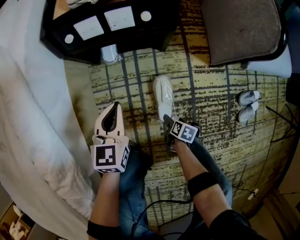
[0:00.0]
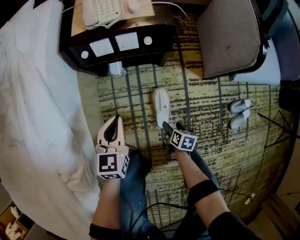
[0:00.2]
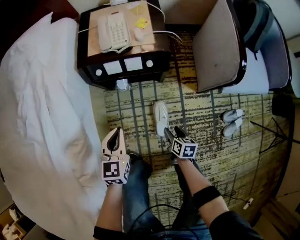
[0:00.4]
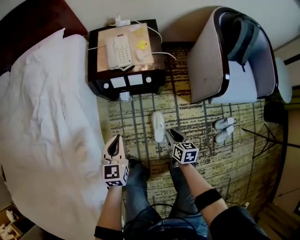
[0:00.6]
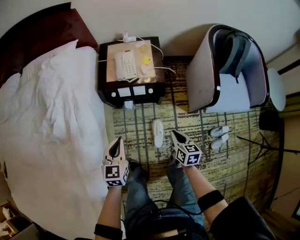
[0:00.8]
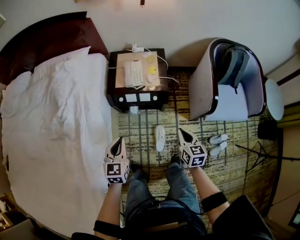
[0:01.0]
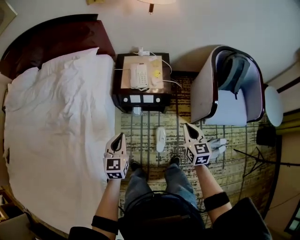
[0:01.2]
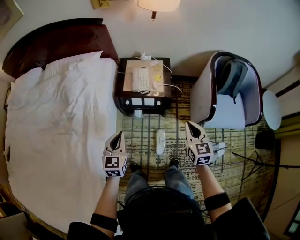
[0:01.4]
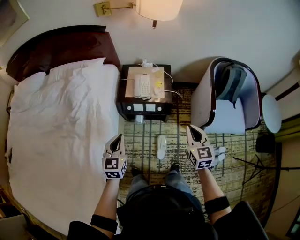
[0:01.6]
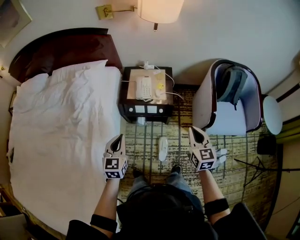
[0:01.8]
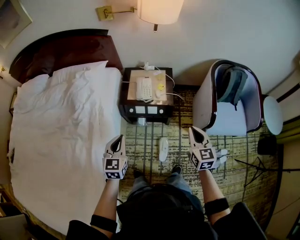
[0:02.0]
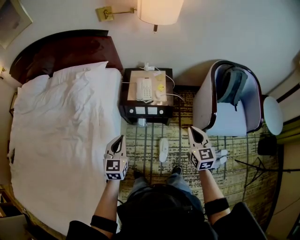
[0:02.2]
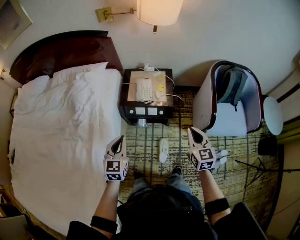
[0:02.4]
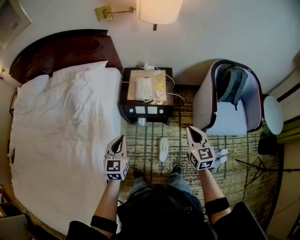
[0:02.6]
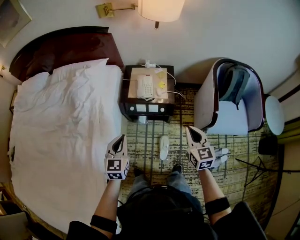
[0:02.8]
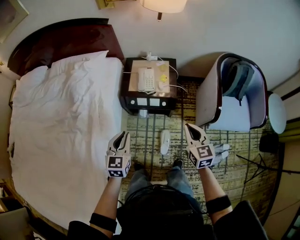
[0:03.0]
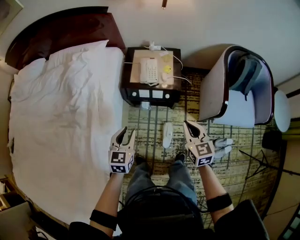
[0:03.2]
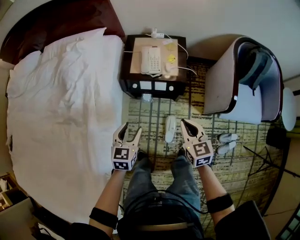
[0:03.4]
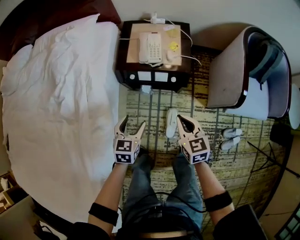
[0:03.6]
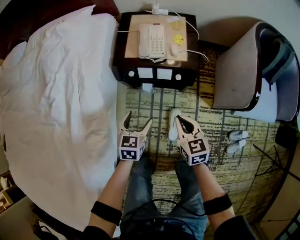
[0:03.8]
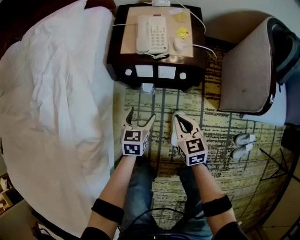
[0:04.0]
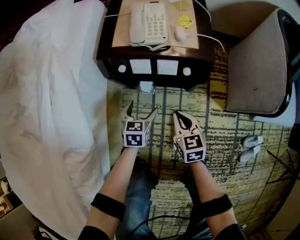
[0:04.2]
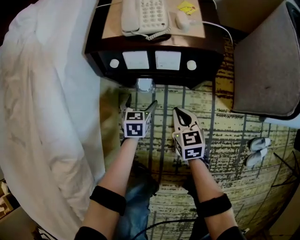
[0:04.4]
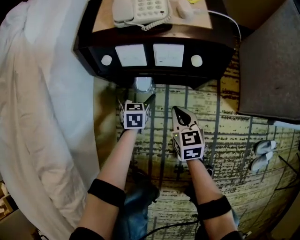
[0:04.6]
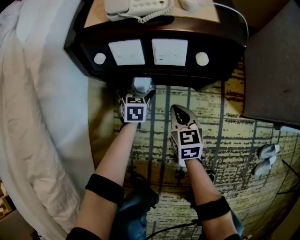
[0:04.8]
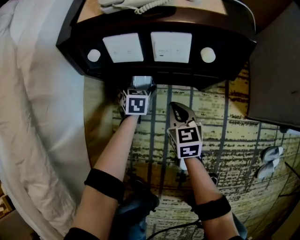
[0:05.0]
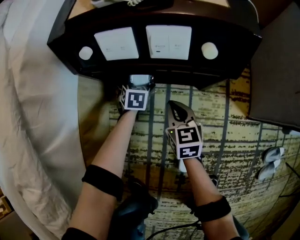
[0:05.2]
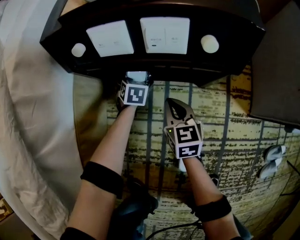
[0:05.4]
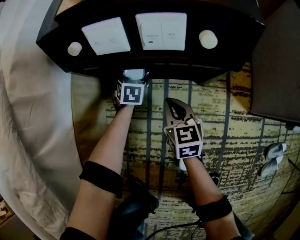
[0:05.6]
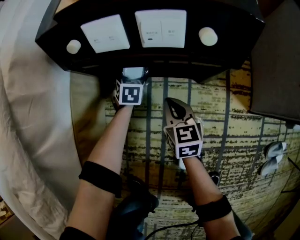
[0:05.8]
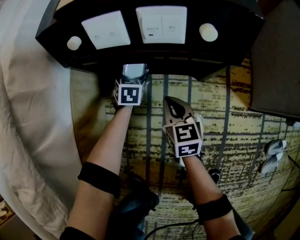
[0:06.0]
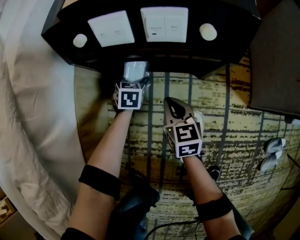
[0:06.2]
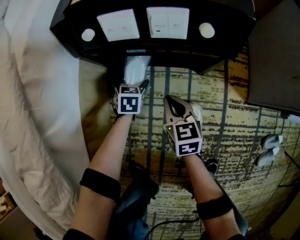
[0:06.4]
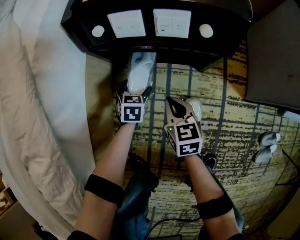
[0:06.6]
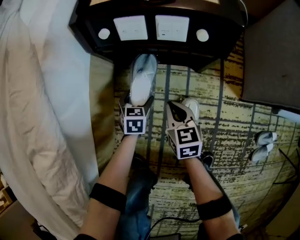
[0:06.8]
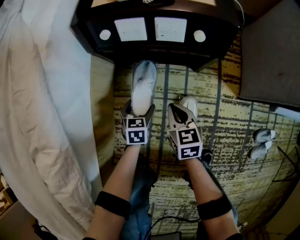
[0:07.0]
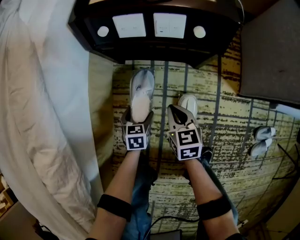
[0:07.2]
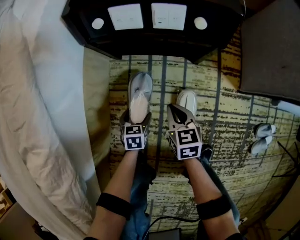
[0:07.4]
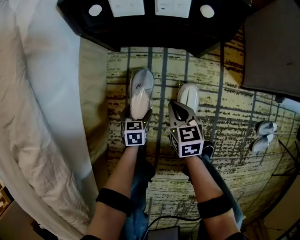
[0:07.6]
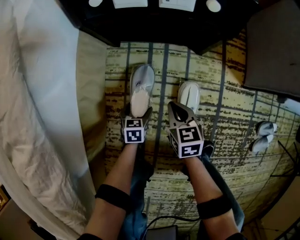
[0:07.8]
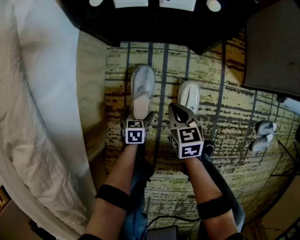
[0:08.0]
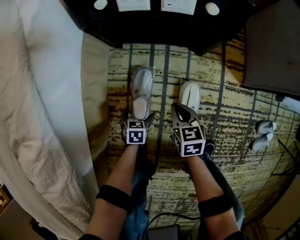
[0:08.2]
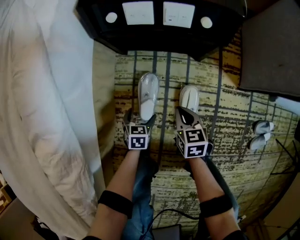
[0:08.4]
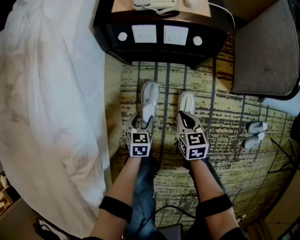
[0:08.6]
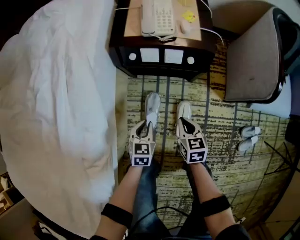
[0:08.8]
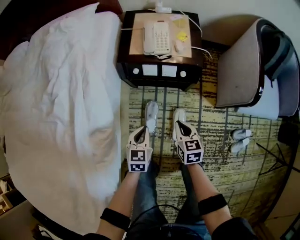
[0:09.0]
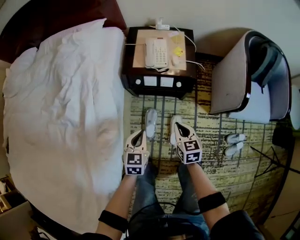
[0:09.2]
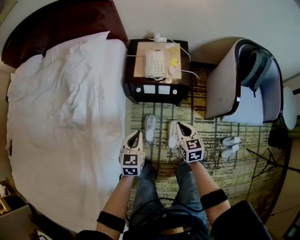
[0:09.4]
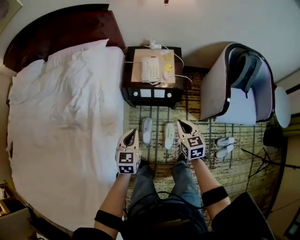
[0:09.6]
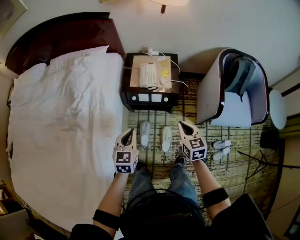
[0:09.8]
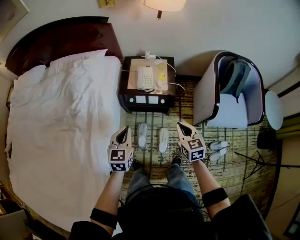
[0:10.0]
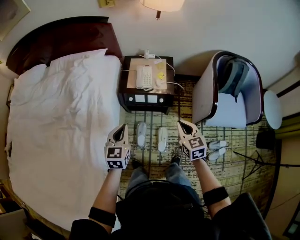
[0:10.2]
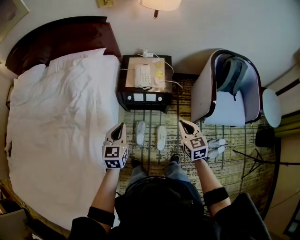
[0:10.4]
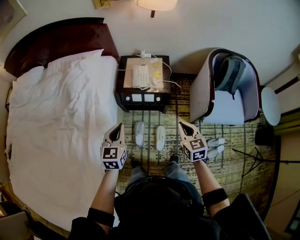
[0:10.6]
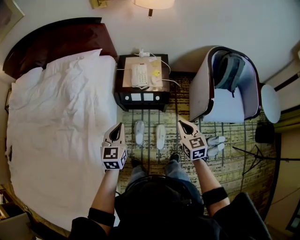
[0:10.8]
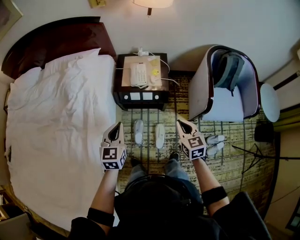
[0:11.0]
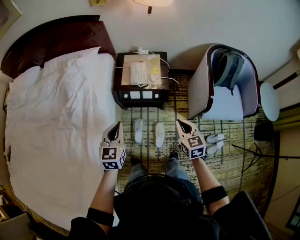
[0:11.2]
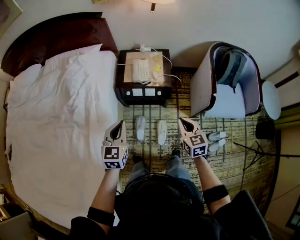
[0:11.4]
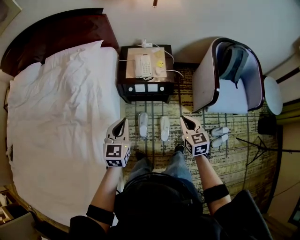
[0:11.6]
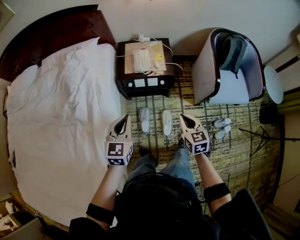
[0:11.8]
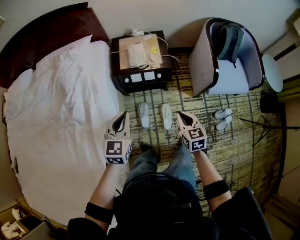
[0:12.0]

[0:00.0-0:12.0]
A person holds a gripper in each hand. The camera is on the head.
0:00.0 to 0:01.6: The right gripper moves upward, some 80 cm, tips its fingers upward by approximately 40 degrees, and closes up, while the left gripper heads upward, covering some 50 cm.
0:01.6 to 0:03.0: The grippers move only a little.
0:03.0 to 0:04.4: Both grippers move downward, some 60 cm. The left gripper swivels about 20 degrees, and opens up.
0:04.4 to 0:06.0: The right gripper is displaced downward by about 15 cm, while the left gripper heads downward and forward, covering about 20 cm.
0:06.0 to 0:07.6: The right gripper moves backward, approximately 15 cm, while the left gripper goes roughly 30 cm backward.
0:07.6 to 0:09.0: The two grippers go about 40 cm upward. The left gripper rotates roughly 20 degrees, and closes up.
0:09.0 to 0:10.4: Both grippers travel together upward, about 35 cm.
0:10.4 to 0:12.0: The right gripper heads downward, backward and to the left, covering about 10 cm.

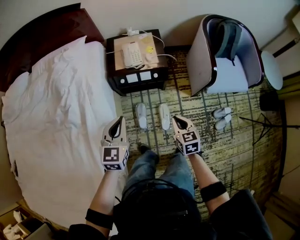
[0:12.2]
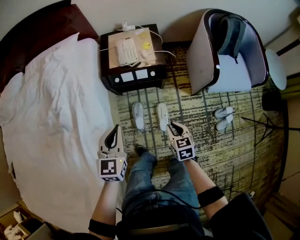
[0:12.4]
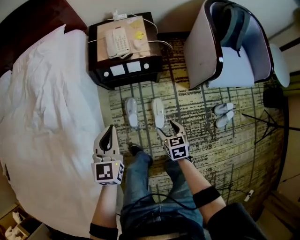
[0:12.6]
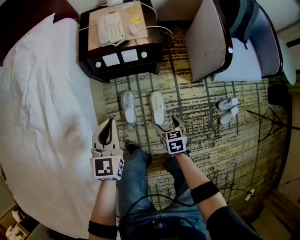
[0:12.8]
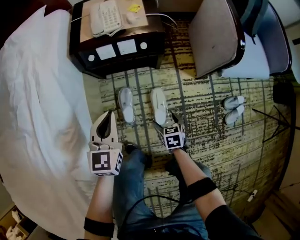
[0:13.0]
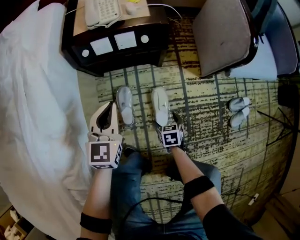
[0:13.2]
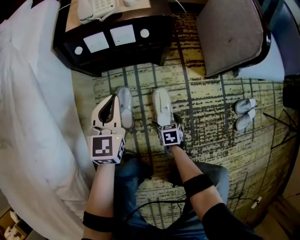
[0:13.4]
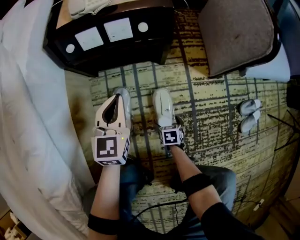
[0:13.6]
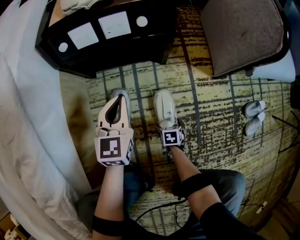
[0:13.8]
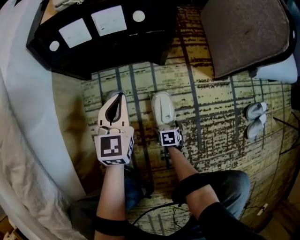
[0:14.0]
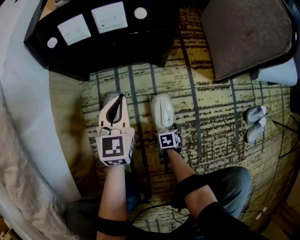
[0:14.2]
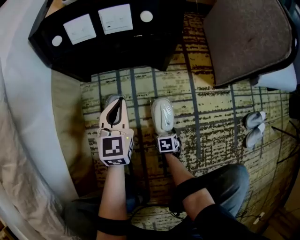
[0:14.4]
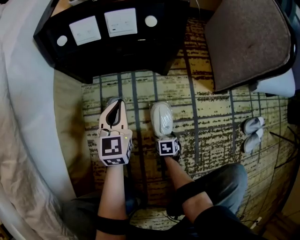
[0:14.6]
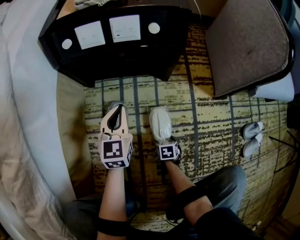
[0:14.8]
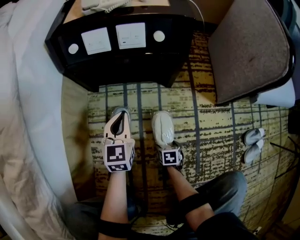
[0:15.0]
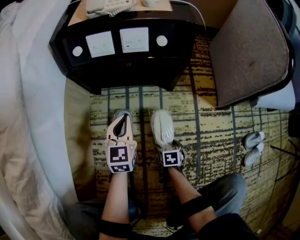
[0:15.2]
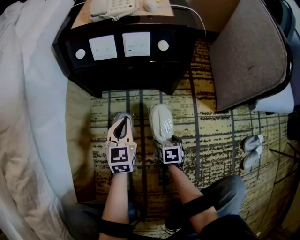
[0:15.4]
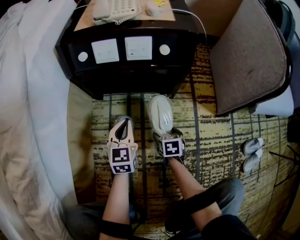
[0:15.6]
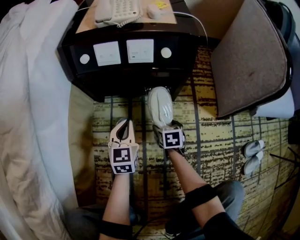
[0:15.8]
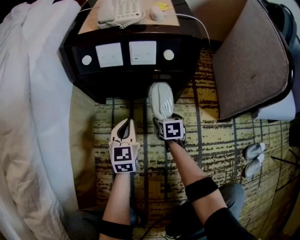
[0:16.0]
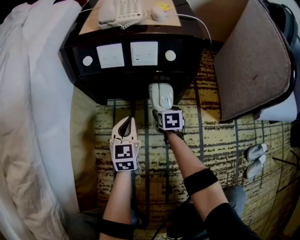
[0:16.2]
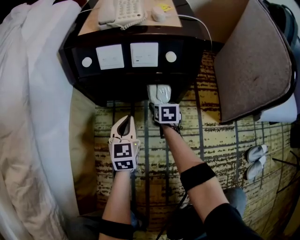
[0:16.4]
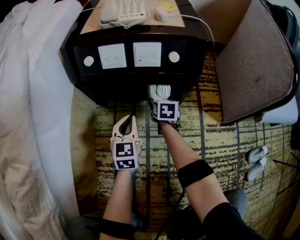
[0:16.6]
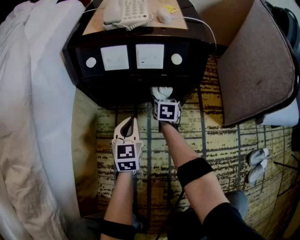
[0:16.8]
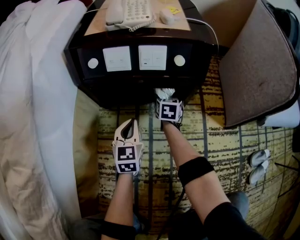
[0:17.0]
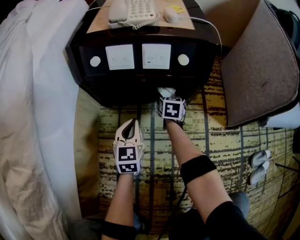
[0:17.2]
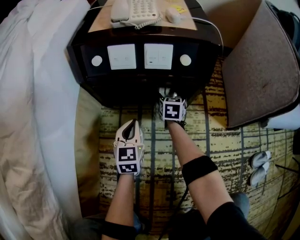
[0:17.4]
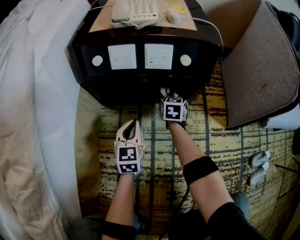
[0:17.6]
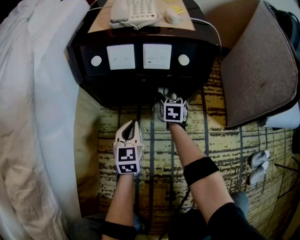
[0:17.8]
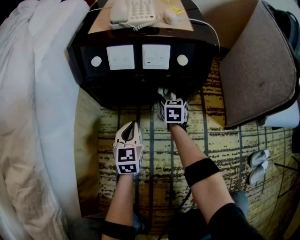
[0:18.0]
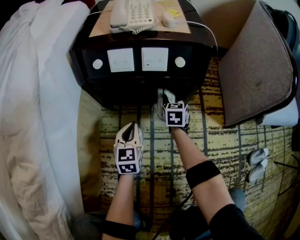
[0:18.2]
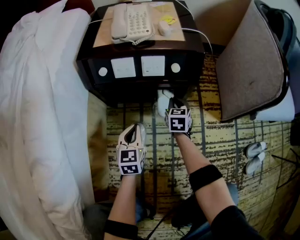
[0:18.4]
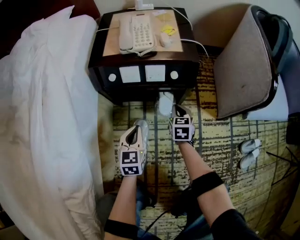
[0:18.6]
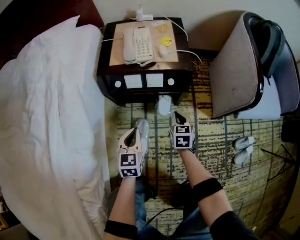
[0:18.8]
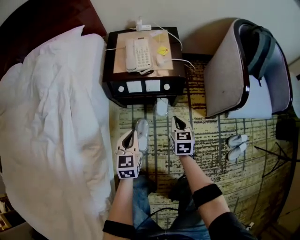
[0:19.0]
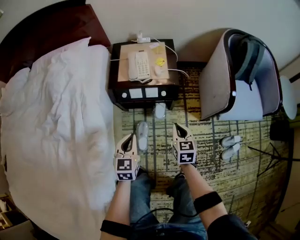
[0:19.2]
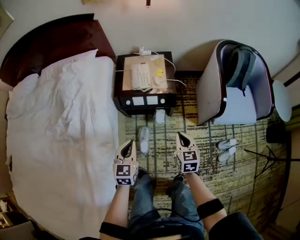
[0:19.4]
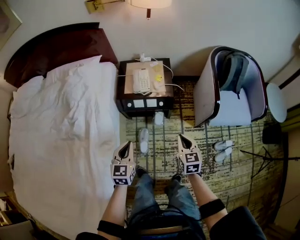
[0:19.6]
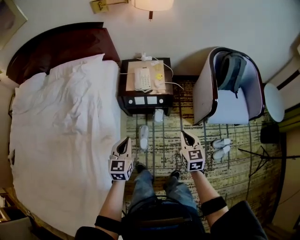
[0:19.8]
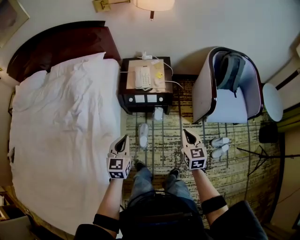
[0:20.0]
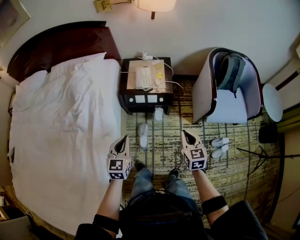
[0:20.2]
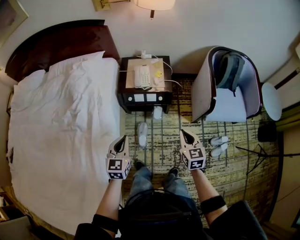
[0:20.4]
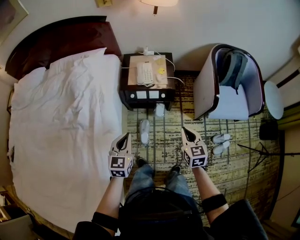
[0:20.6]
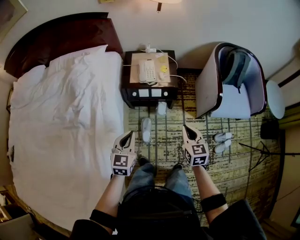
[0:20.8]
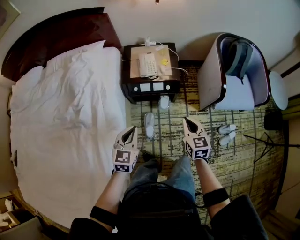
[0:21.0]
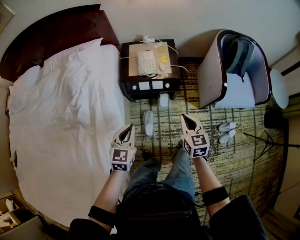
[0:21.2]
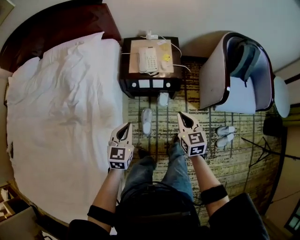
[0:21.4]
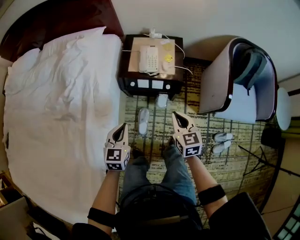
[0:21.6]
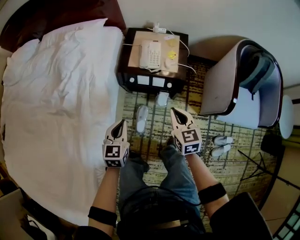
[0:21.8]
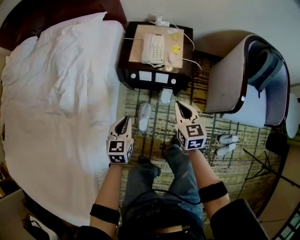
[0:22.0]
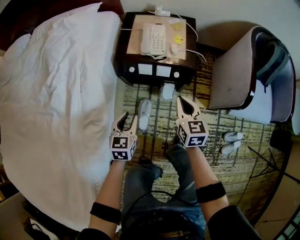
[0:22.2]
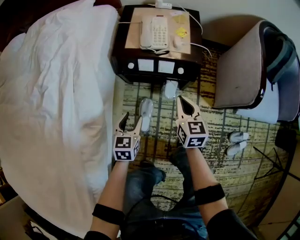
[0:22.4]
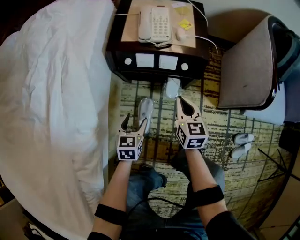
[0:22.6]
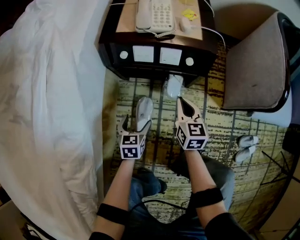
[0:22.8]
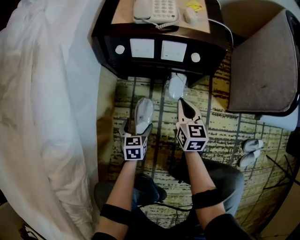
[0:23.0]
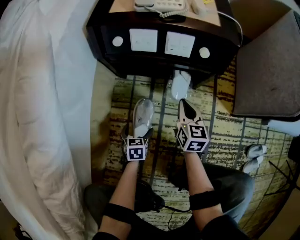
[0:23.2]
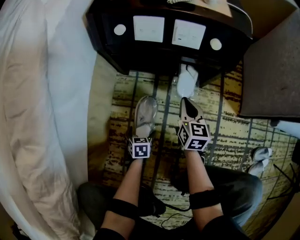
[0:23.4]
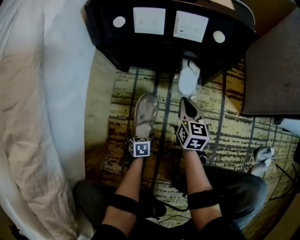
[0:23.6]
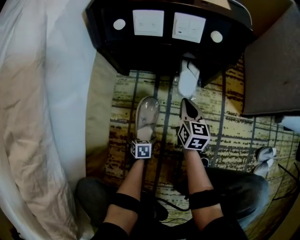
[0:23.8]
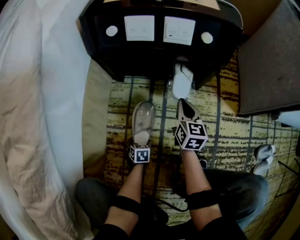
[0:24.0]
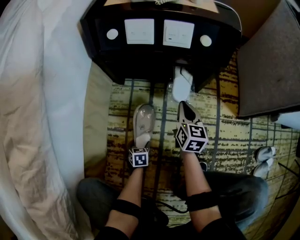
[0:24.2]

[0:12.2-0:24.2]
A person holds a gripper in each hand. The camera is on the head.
0:12.2 to 0:13.8: Both grippers travel together downward, about 70 cm. The right gripper points its fingers about 30 degrees further downward, and opens up.
0:13.8 to 0:15.2: The left gripper heads downward, covering roughly 10 cm; the right gripper travels downward and back again, roughly 10 cm each way.
0:15.2 to 0:16.6: The right gripper moves forward, approximately 30 cm, while the left gripper heads forward, covering about 5 cm.
0:16.6 to 0:18.2: The right gripper is displaced upward by approximately 5 cm, and closes.
0:18.2 to 0:19.8: The right gripper travels upward and backward by about 80 cm, and closes its fingers; the left gripper travels upward by some 70 cm.
0:19.8 to 0:21.2: The right gripper heads to the left, covering approximately 5 cm; the left gripper changes place by approximately 5 cm.
0:21.2 to 0:22.6: The grippers both shift downward by some 40 cm. The left gripper rotates about 20 degrees, and opens.
0:22.6 to 0:24.2: The grippers both shift downward by some 40 cm. The left gripper changes its angle by approximately 20 degrees, and opens and closes again.
